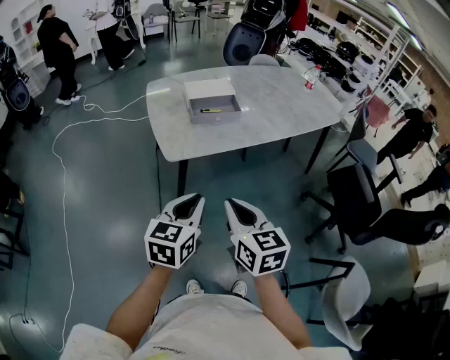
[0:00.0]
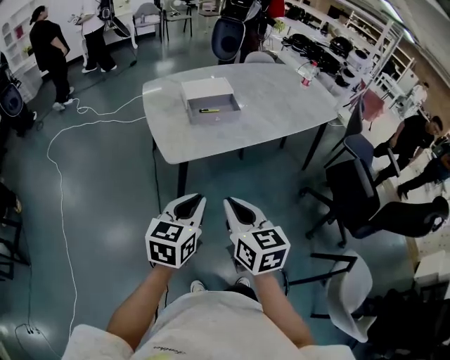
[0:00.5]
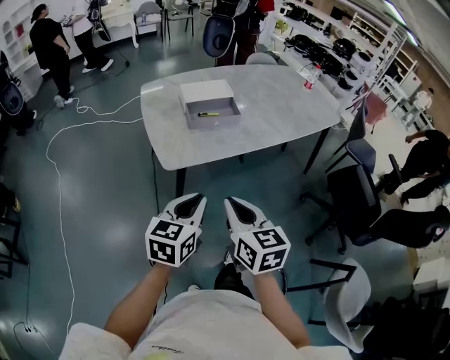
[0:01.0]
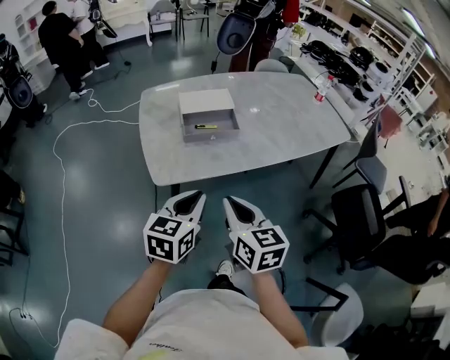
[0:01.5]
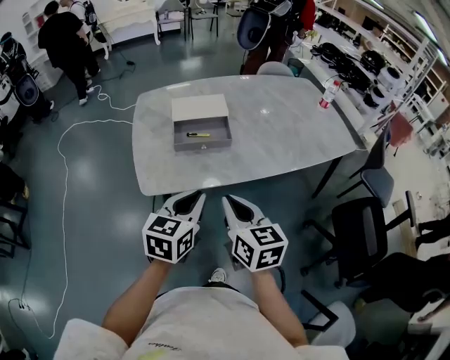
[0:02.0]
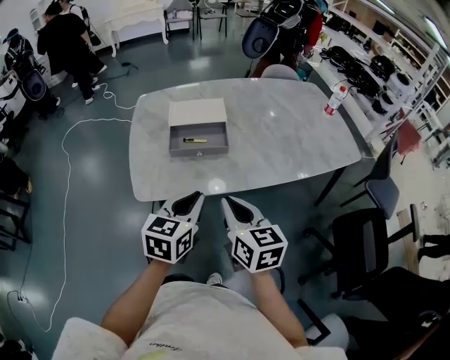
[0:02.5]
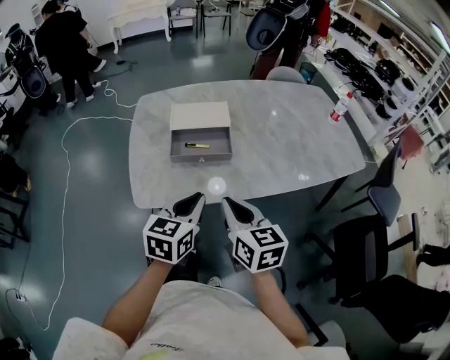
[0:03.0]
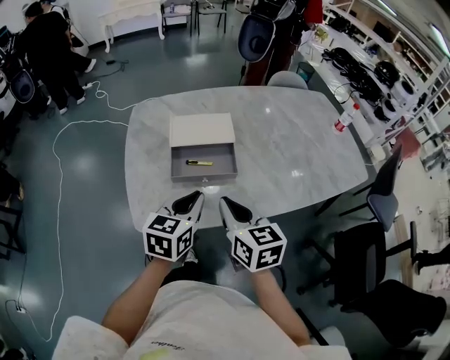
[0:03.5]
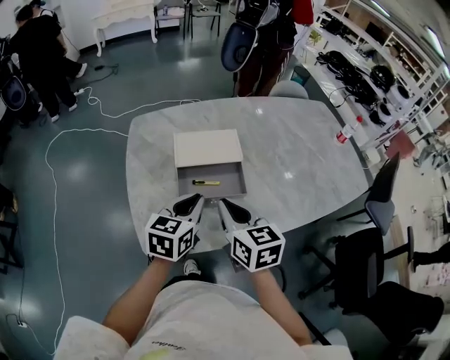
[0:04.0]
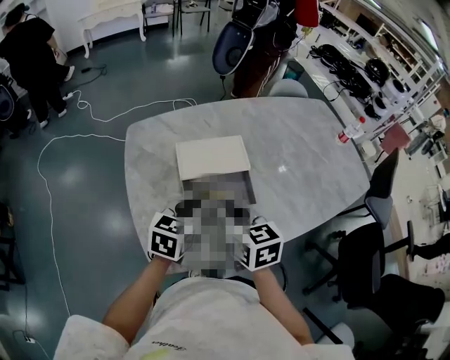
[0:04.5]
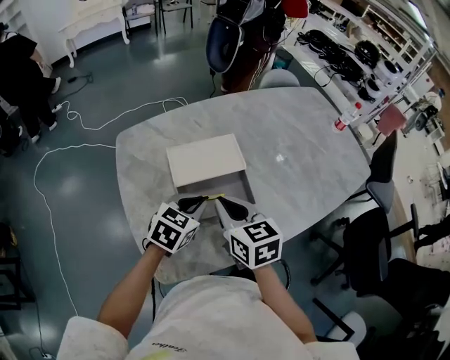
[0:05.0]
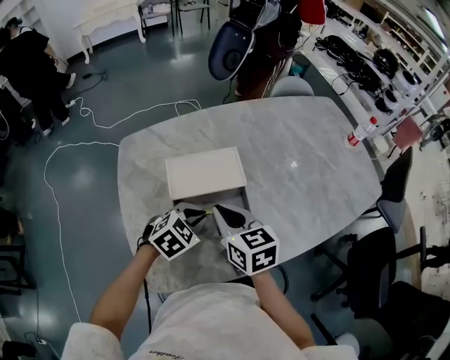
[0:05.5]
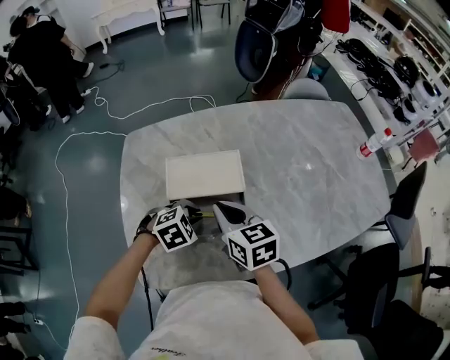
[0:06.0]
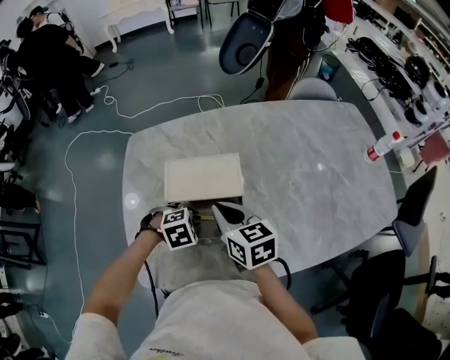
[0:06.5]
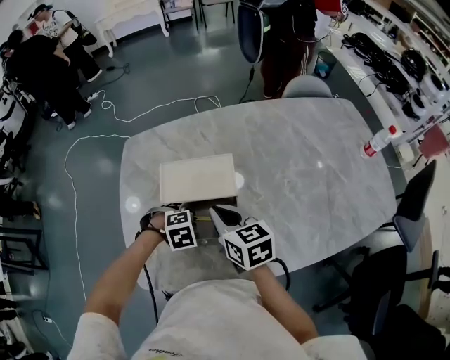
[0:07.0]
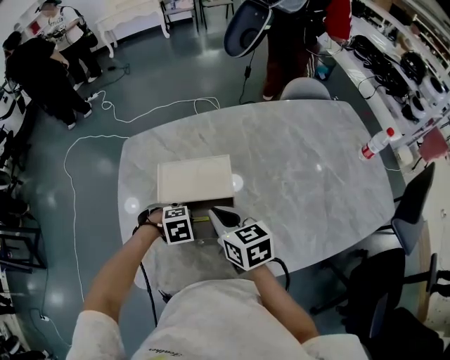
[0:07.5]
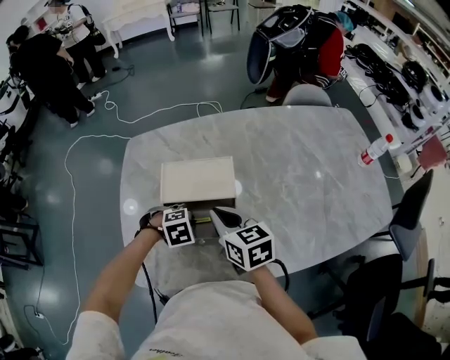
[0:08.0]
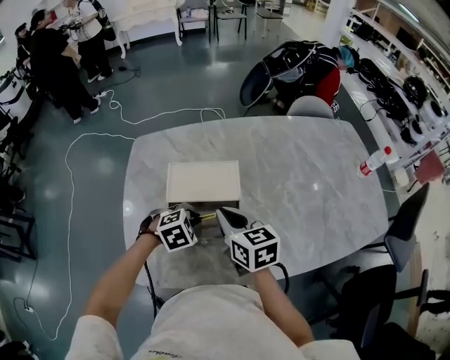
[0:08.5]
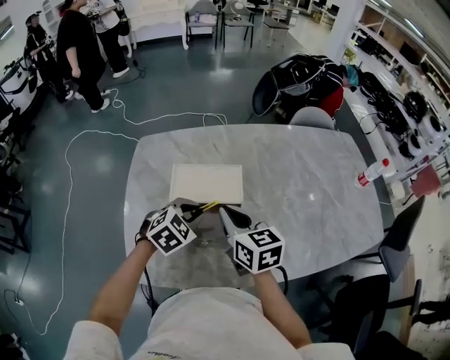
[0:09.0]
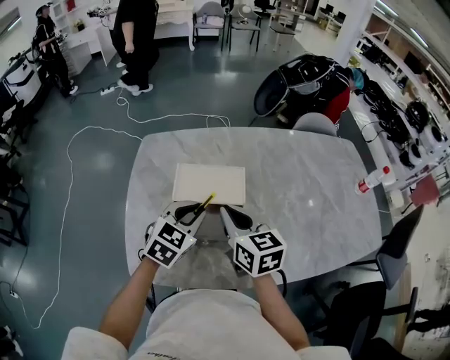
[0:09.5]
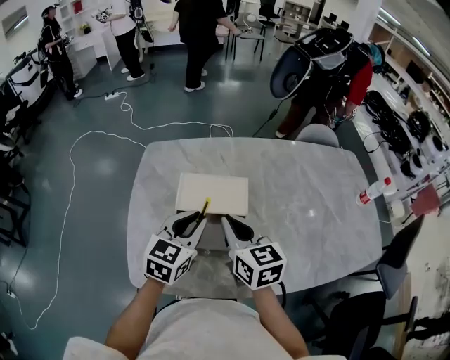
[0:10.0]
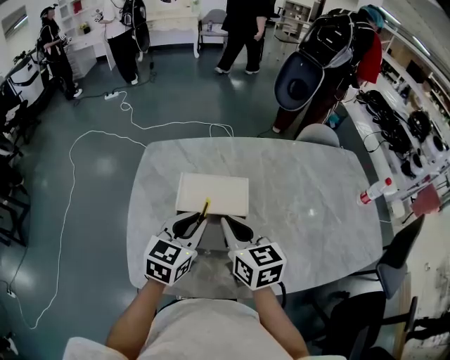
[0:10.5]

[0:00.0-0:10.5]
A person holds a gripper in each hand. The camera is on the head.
0:00.0 to 0:02.0: Both grippers travel together forward and to the right, approximately 25 cm.
0:02.0 to 0:04.0: Both grippers travel together forward, roughly 25 cm.
0:04.0 to 0:06.5: The right gripper moves about 15 cm. Meanwhile the left gripper shifts some 15 cm downward, and tilts its fingers roughly 50 degrees downward.
0:06.5 to 0:08.5: The grippers make only small movements.
0:08.5 to 0:10.5: The right gripper moves upward, some 5 cm. The left gripper goes roughly 15 cm upward, and tilts its fingers about 40 degrees upward.

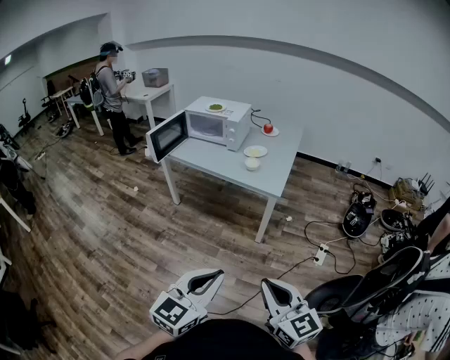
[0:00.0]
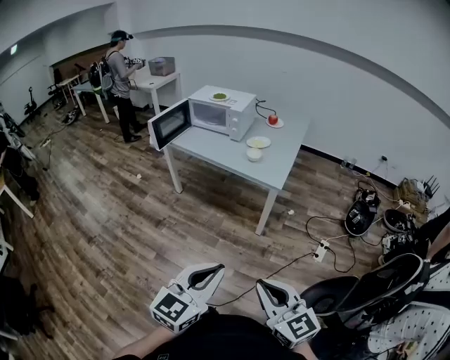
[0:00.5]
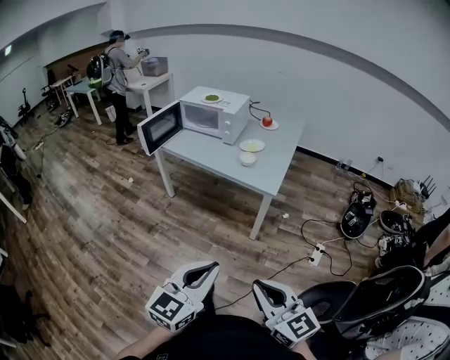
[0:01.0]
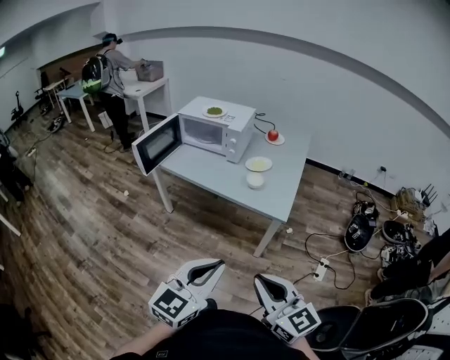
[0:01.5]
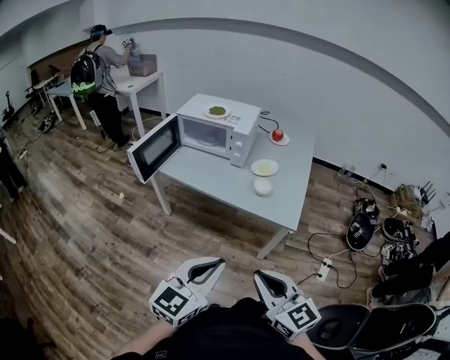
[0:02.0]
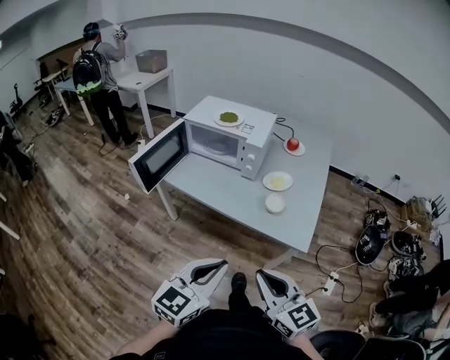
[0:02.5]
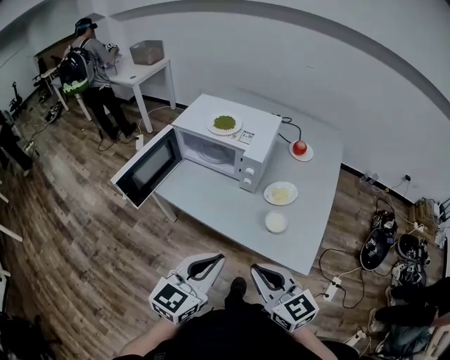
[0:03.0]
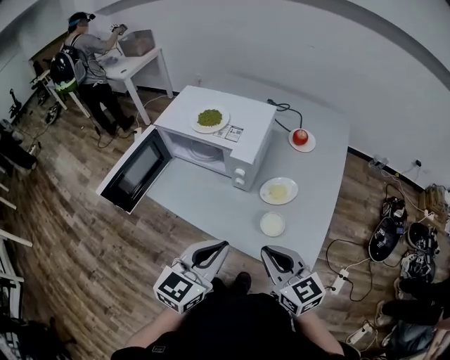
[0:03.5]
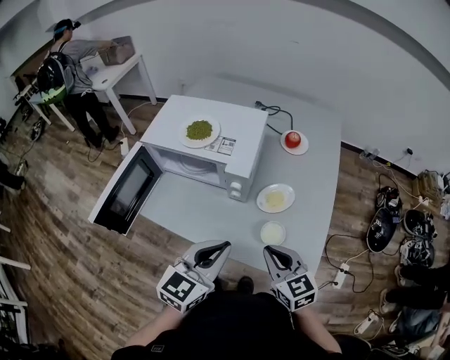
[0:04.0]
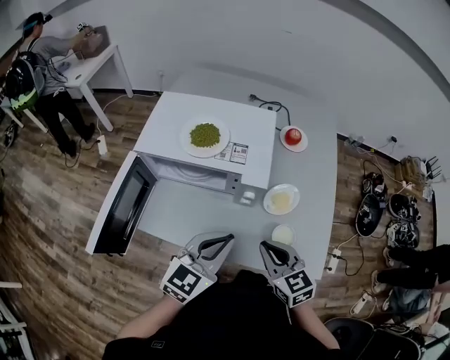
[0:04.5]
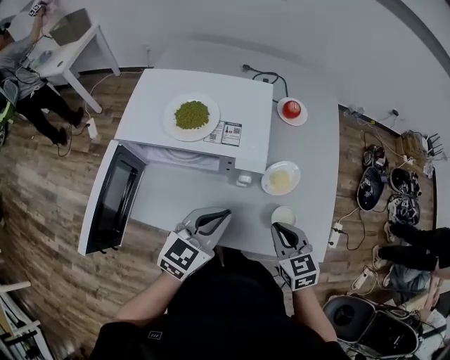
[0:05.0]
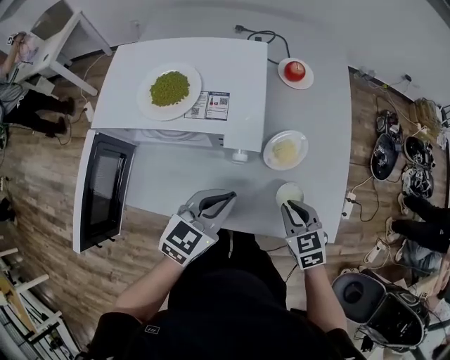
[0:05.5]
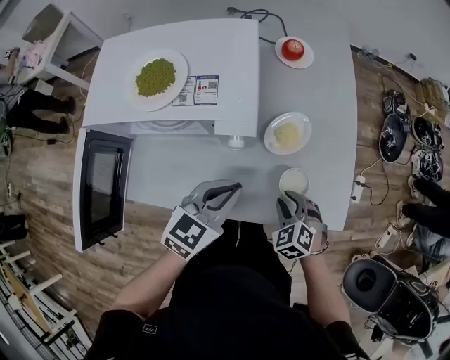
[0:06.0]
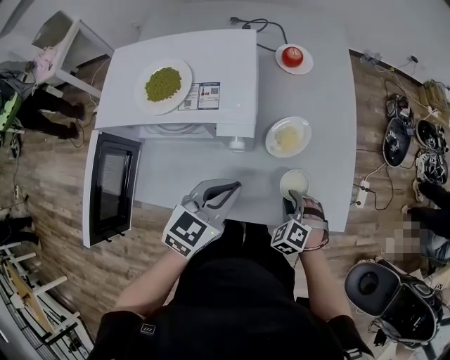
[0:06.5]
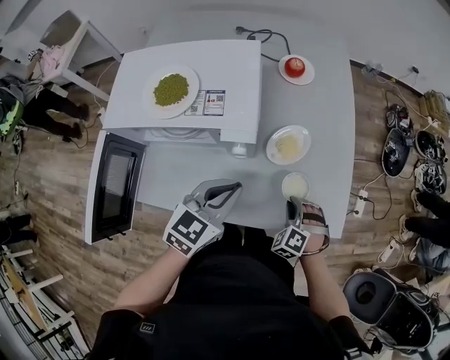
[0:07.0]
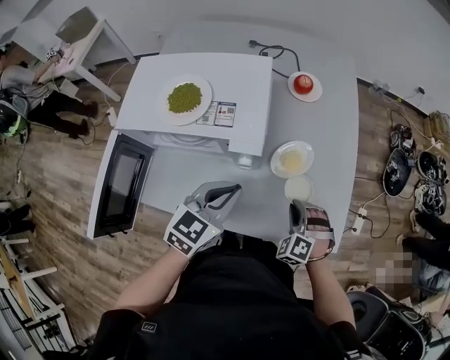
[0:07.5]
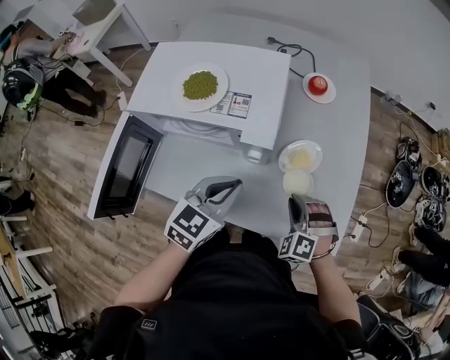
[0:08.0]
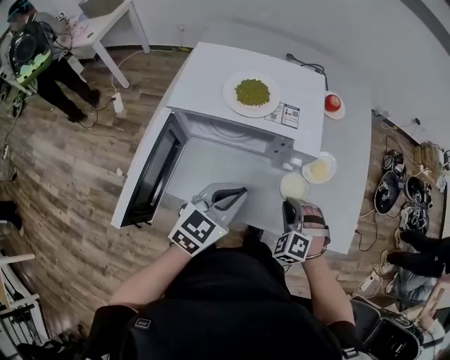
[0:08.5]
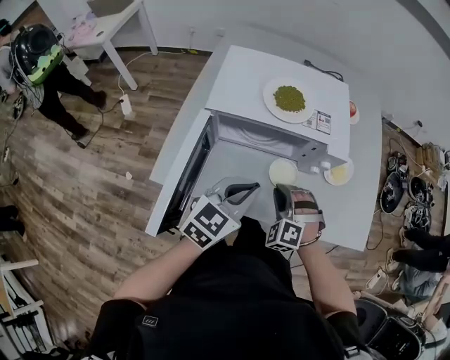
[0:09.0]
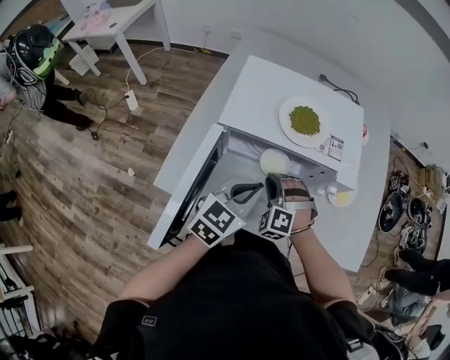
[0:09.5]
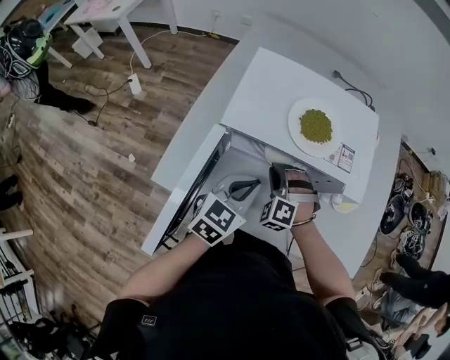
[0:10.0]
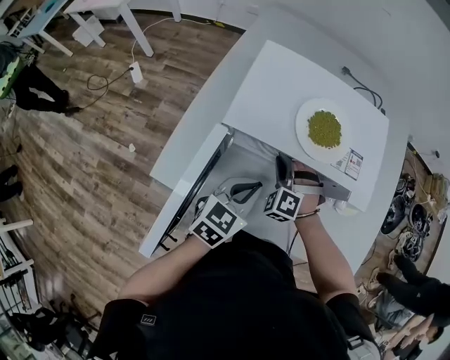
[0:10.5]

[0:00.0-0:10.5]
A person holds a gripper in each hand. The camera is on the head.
0:00.0 to 0:02.0: Both grippers travel together forward, some 30 cm.
0:02.0 to 0:04.0: The pair of grippers is taken forward, approximately 40 cm.
0:04.0 to 0:06.5: The right gripper moves downward, roughly 20 cm, tips its fingers downward by roughly 30 degrees, and opens up. Meanwhile the left gripper ends up roughly 15 cm from where it was, and turns by about 20 degrees.
0:06.5 to 0:08.5: The left gripper shifts roughly 15 cm to the left and backward. The right gripper travels to the left and upward by roughly 15 cm, and swivels about 20 degrees.
0:08.5 to 0:10.5: The right gripper is displaced to the left and forward by about 30 cm; the left gripper heads to the left, downward and forward, covering about 15 cm.

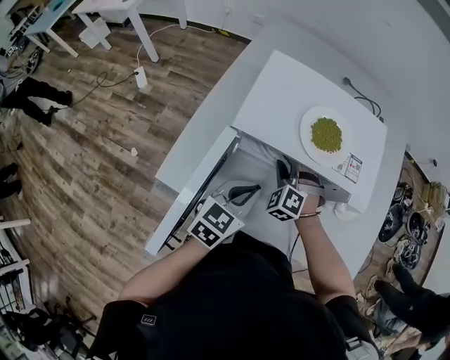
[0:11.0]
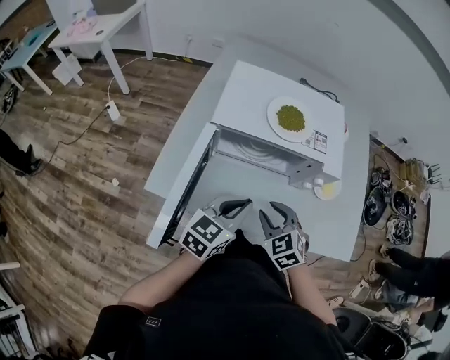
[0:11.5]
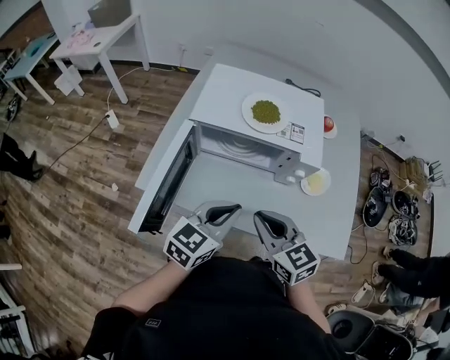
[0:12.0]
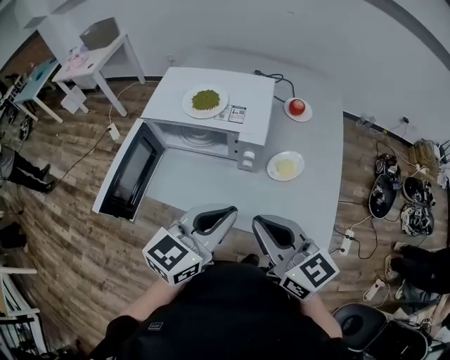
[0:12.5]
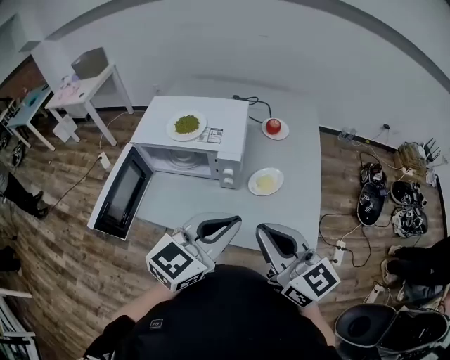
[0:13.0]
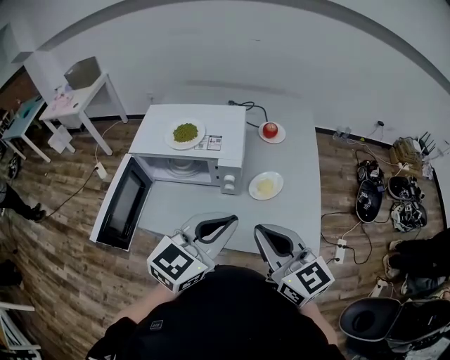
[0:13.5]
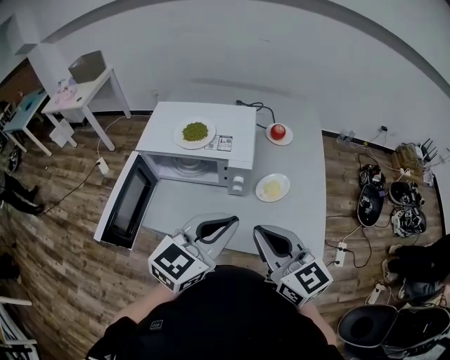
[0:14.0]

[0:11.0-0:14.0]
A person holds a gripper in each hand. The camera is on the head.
0:11.0 to 0:12.5: The left gripper travels to the right, upward and backward by approximately 35 cm. Meanwhile the right gripper goes about 50 cm backward, to the right and upward, angles its fingers upward, by about 40 degrees, and closes its fingers.

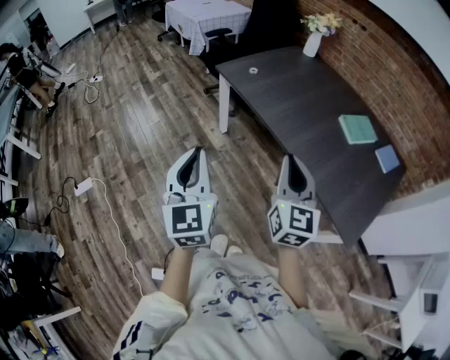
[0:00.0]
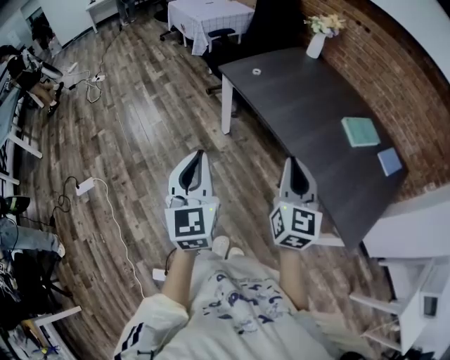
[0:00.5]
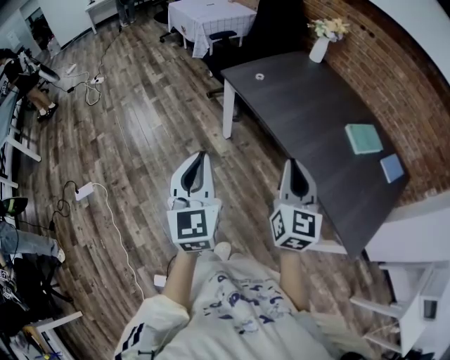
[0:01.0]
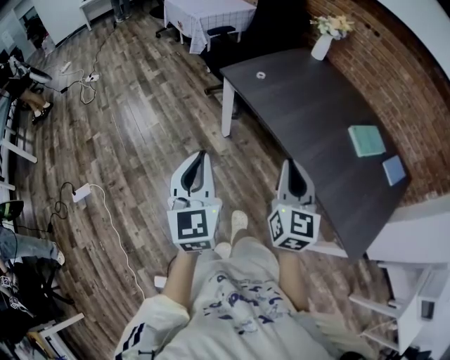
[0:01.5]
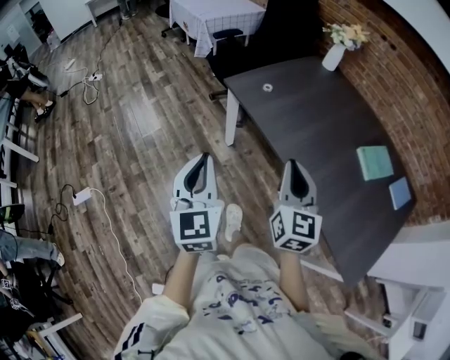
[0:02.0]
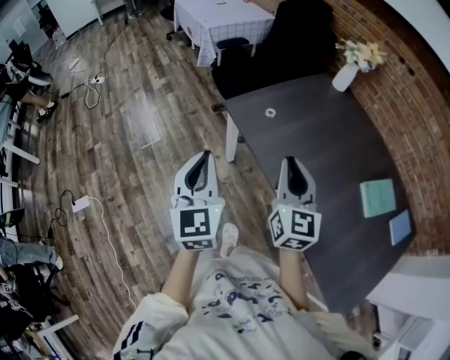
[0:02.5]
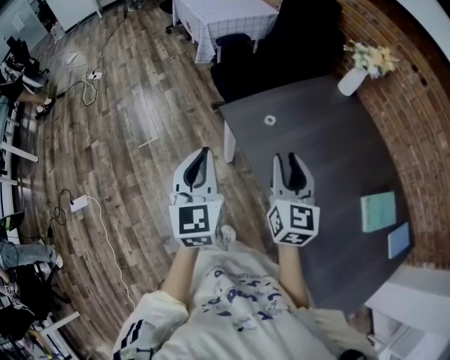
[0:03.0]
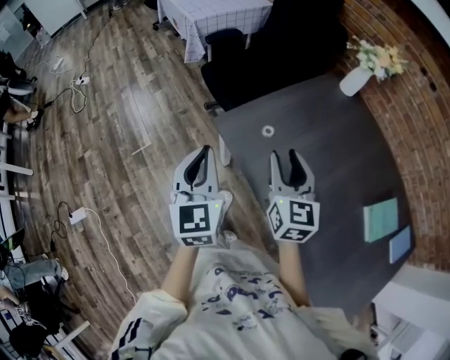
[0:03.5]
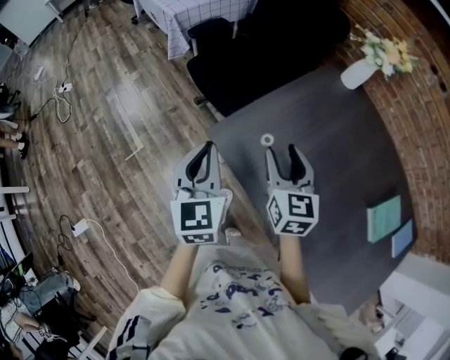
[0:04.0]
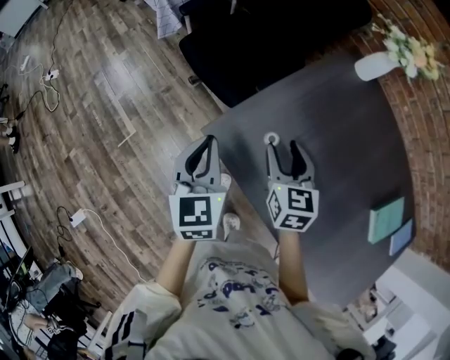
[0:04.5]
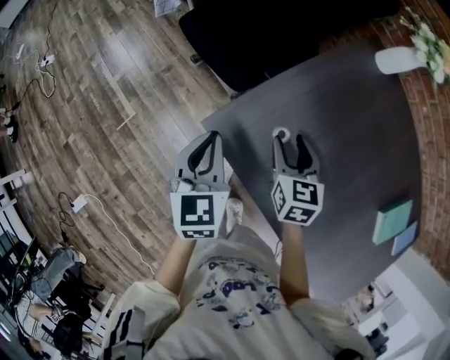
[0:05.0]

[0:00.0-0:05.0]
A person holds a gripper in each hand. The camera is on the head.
0:00.0 to 0:02.5: The two grippers go about 35 cm forward.
0:02.5 to 0:05.0: Both grippers move forward and downward, about 40 cm. The right gripper tilts its fingers some 30 degrees downward, and opens. Meanwhile the left gripper changes its angle by roughly 30 degrees.
